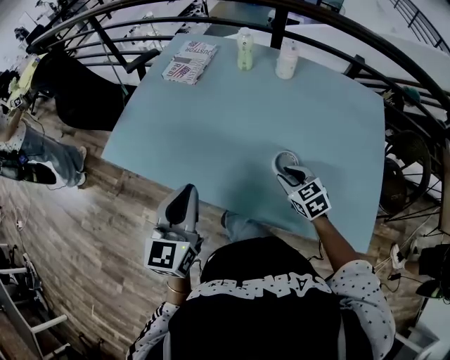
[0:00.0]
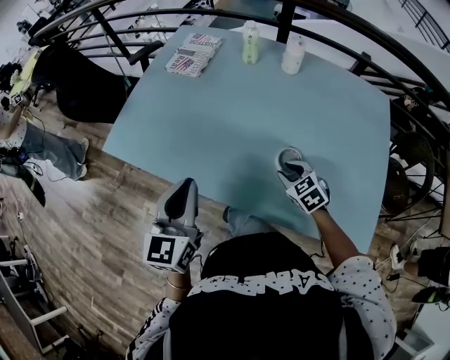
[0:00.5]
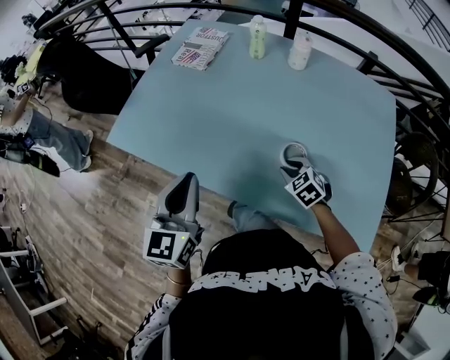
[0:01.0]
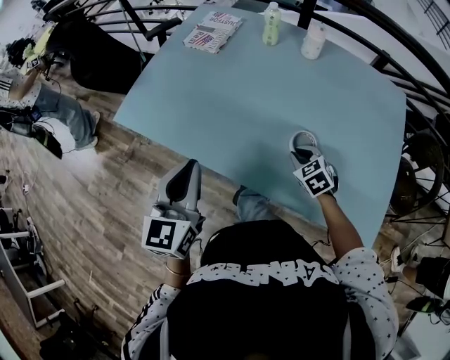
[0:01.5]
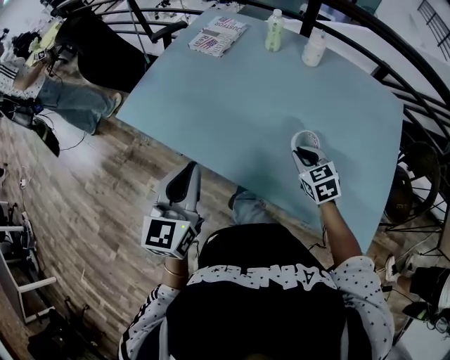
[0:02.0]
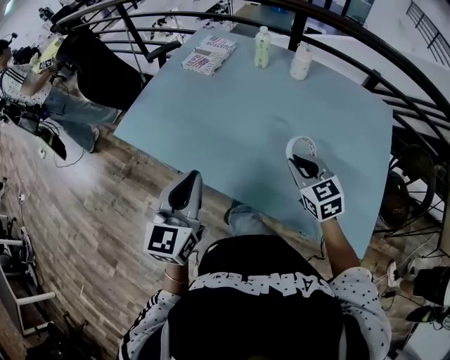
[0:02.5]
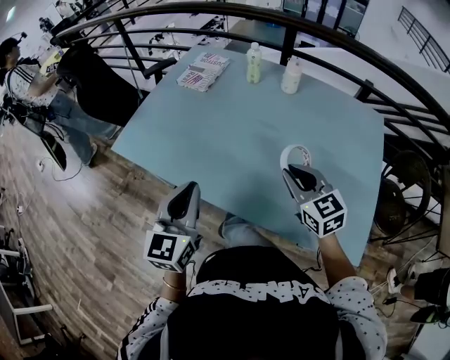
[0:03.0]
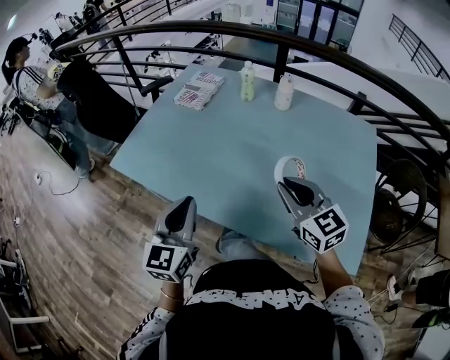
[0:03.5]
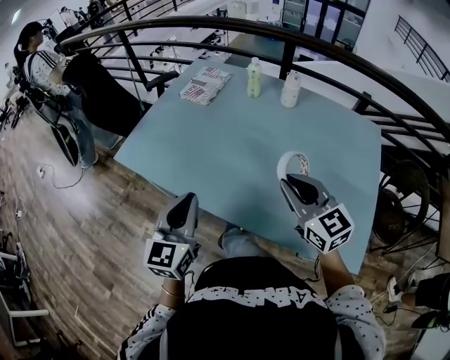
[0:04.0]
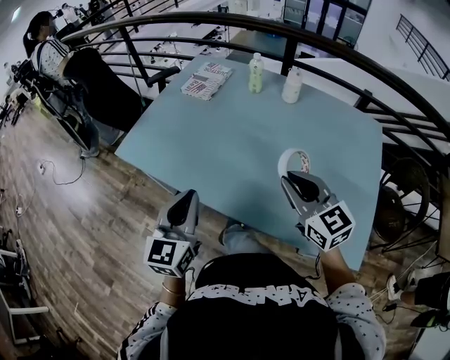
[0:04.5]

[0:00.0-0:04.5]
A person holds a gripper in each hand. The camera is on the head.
0:00.0 to 0:02.0: The grippers stay close to where they were, moving slightly.
0:02.0 to 0:04.5: The right gripper goes about 20 cm upward, and changes its angle by some 30 degrees.

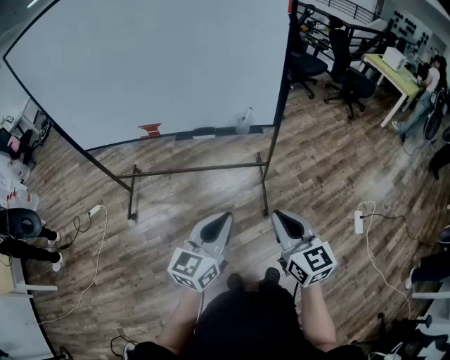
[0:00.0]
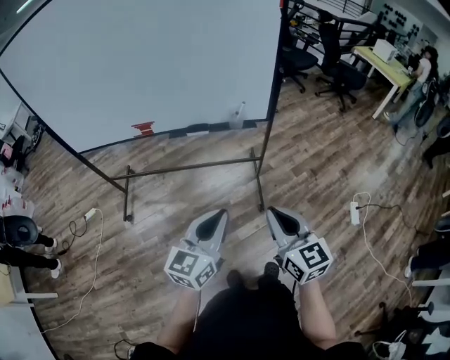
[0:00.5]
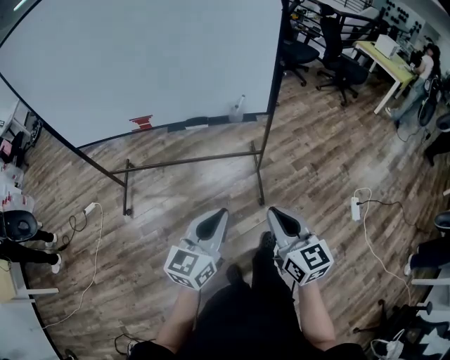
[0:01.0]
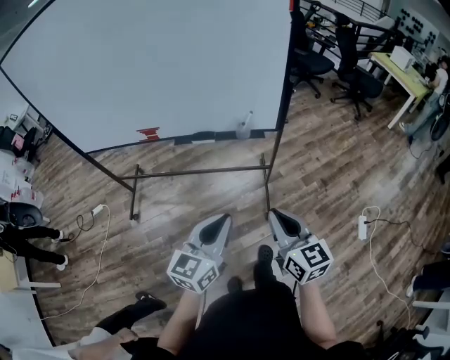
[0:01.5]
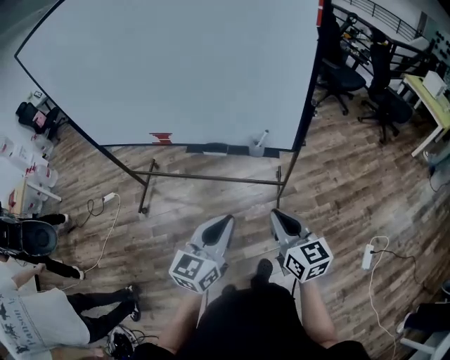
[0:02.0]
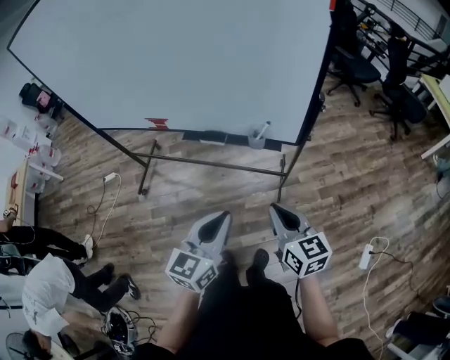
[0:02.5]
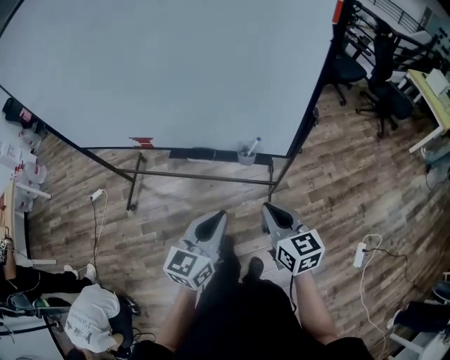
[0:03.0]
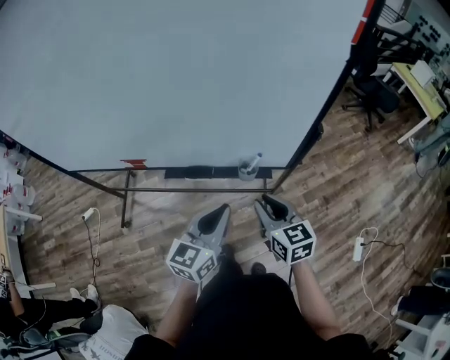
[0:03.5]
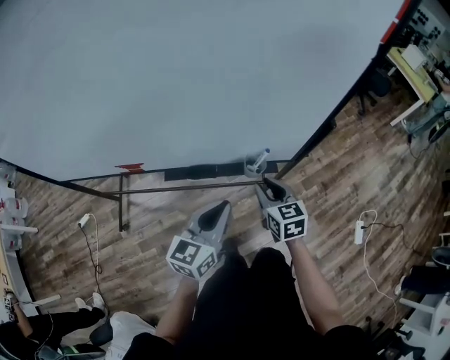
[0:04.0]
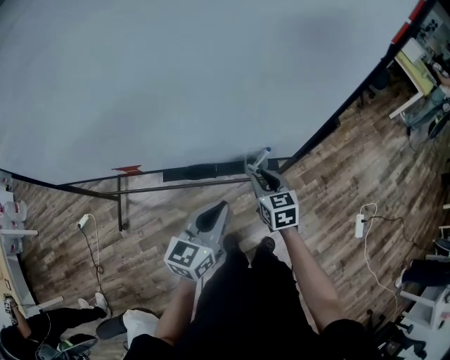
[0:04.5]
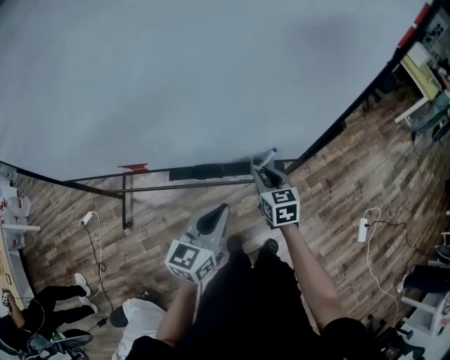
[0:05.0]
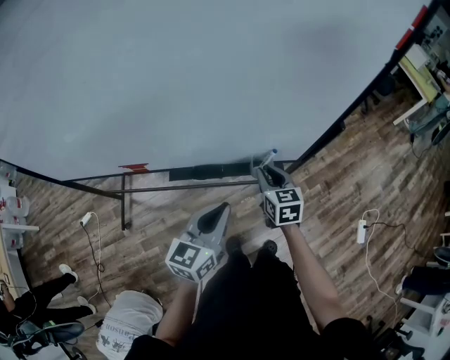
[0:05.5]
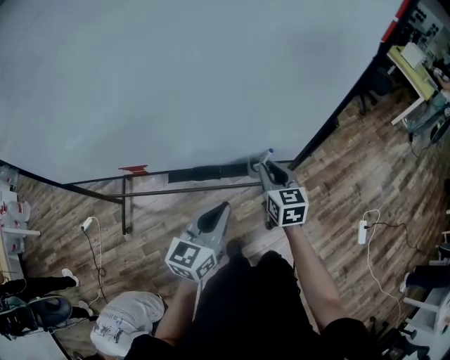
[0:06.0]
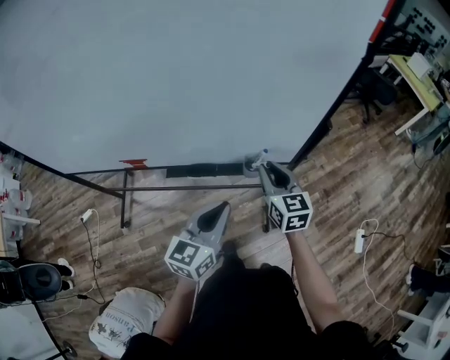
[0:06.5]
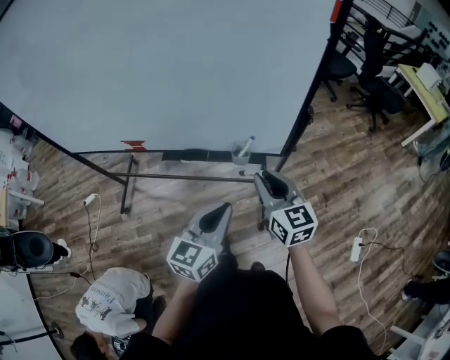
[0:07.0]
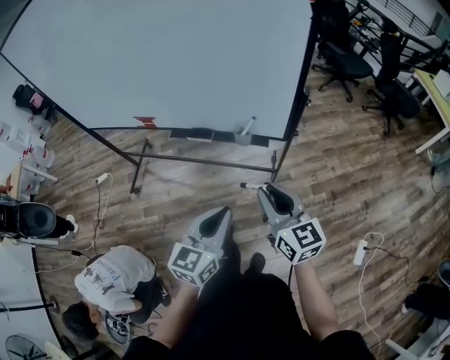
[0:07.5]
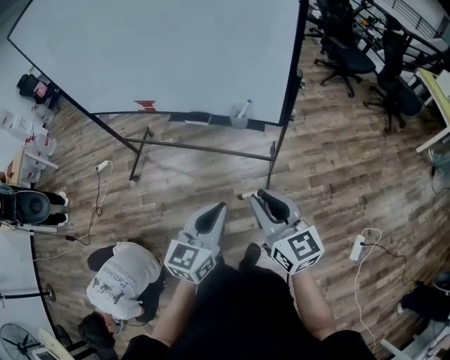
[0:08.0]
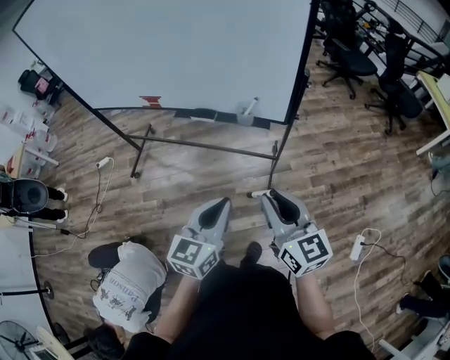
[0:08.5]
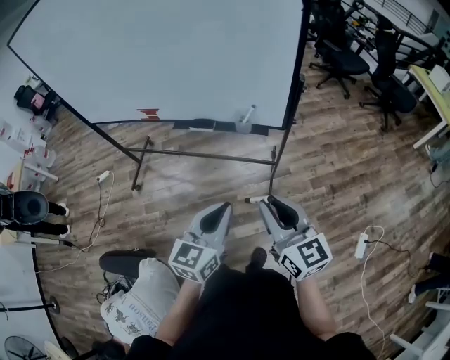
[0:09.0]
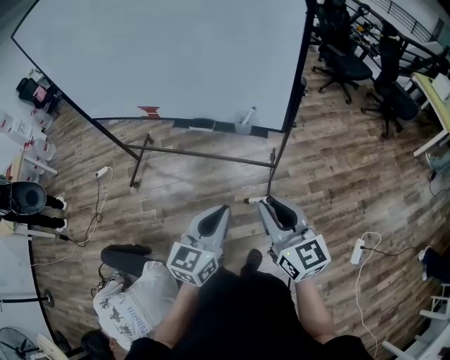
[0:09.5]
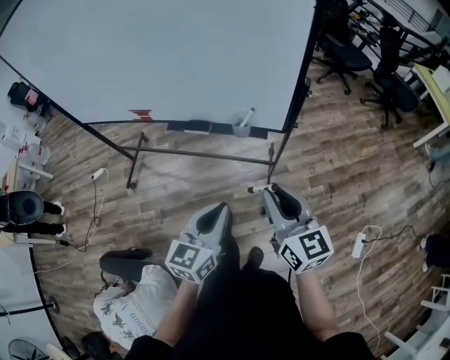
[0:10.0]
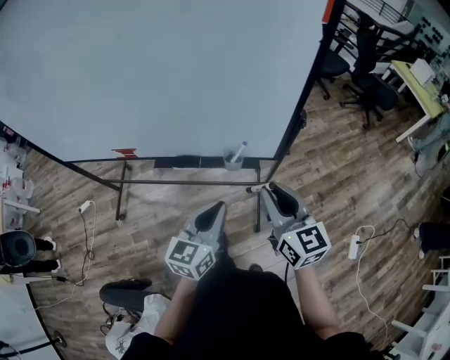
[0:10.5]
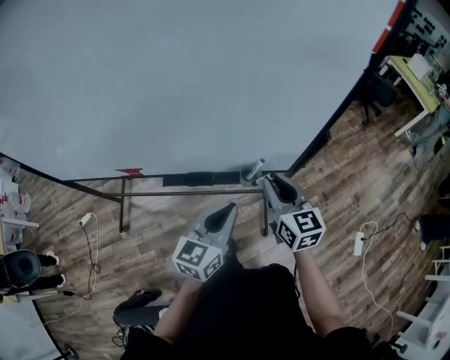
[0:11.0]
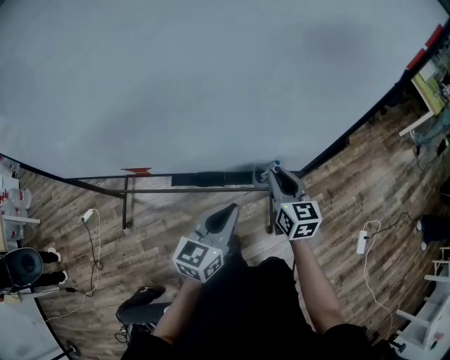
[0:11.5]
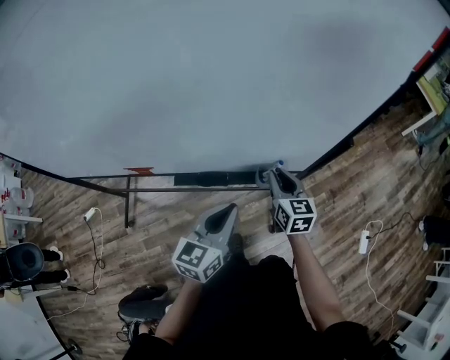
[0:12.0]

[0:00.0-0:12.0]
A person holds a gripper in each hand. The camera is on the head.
0:00.0 to 0:02.0: Both grippers travel together forward, roughly 15 cm.
0:02.0 to 0:04.0: The right gripper moves forward and downward, approximately 30 cm, turns by approximately 20 degrees, and opens; the left gripper shifts about 25 cm forward.
0:04.0 to 0:06.0: The right gripper ends up about 5 cm from where it was.
0:06.0 to 0:08.0: The right gripper moves about 35 cm, and swivels some 30 degrees. Meanwhile the left gripper changes place by approximately 30 cm.
0:08.0 to 0:10.0: Both grippers travel together forward, roughly 5 cm.
0:10.0 to 0:12.0: The left gripper moves forward and to the left, about 25 cm. The right gripper travels forward, downward and to the left by about 35 cm, and turns by approximately 30 degrees.

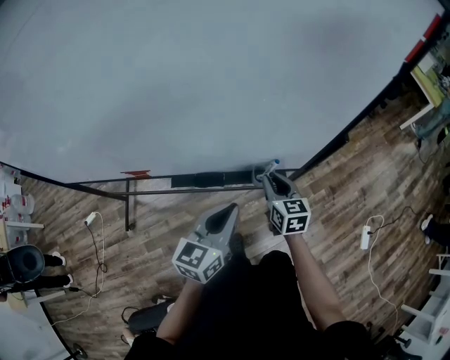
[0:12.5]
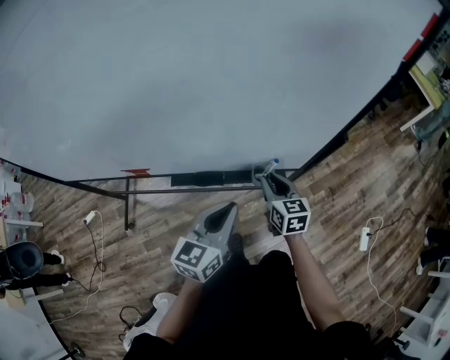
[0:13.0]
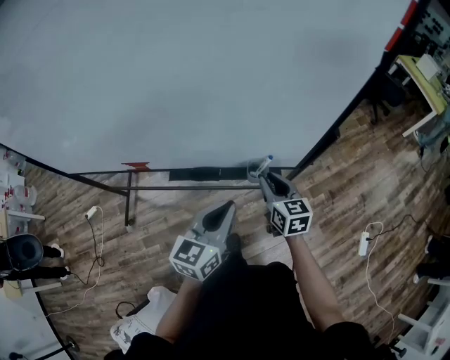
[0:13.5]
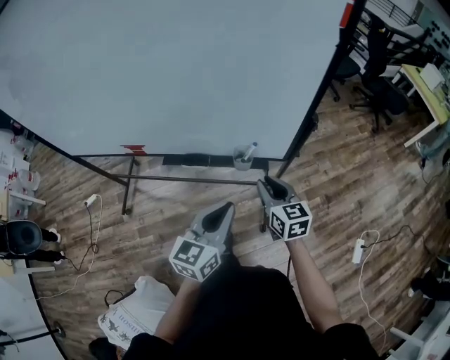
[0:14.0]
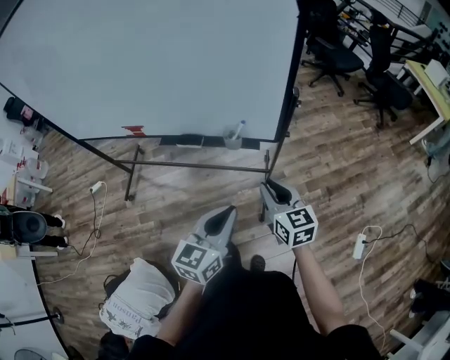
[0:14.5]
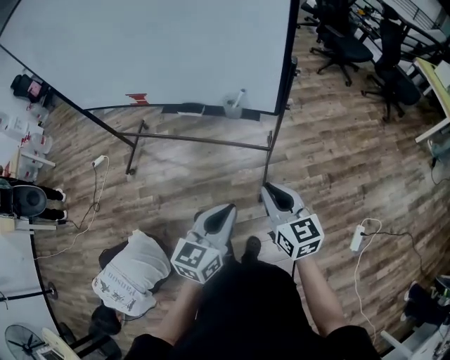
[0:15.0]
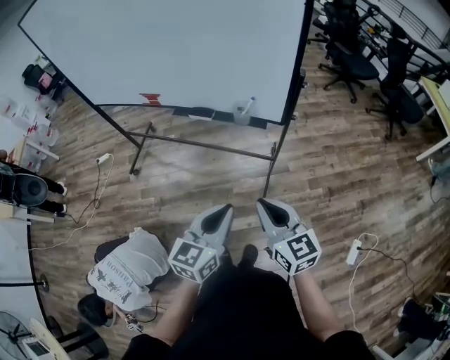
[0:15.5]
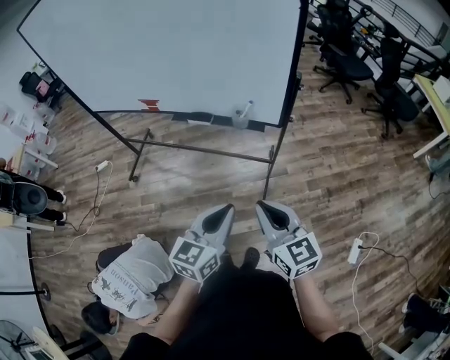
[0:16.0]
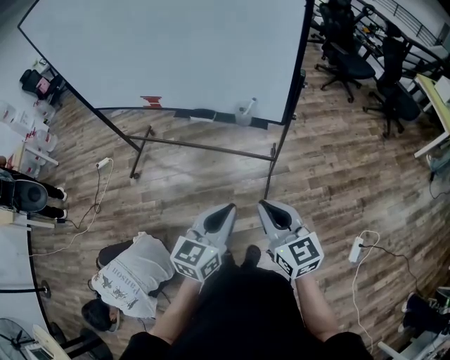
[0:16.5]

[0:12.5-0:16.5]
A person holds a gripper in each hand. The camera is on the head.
0:12.5 to 0:14.5: Both grippers move backward and to the right, some 25 cm.
0:14.5 to 0:16.5: The left gripper shifts approximately 10 cm backward. Meanwhile the right gripper heads backward, covering about 20 cm.

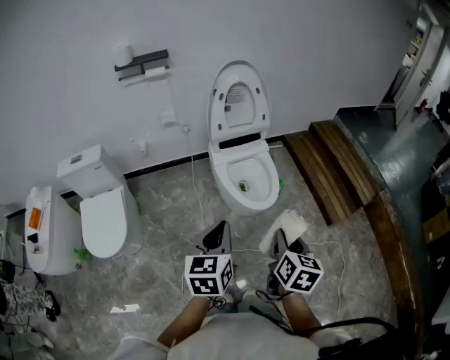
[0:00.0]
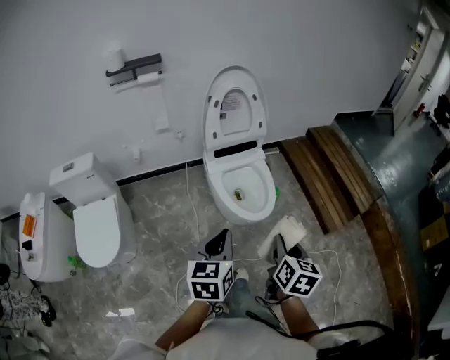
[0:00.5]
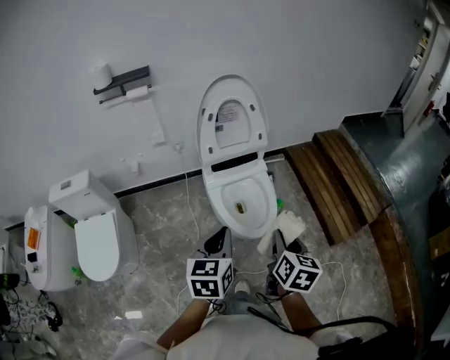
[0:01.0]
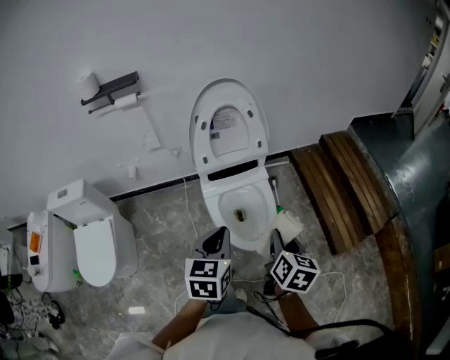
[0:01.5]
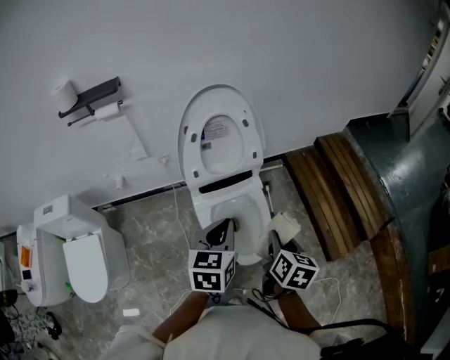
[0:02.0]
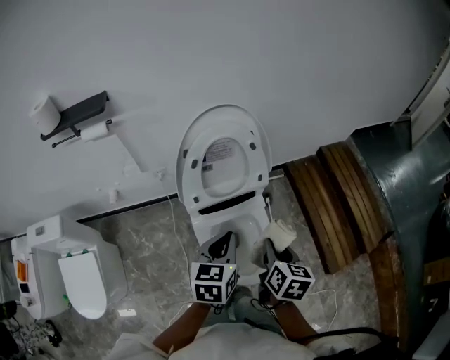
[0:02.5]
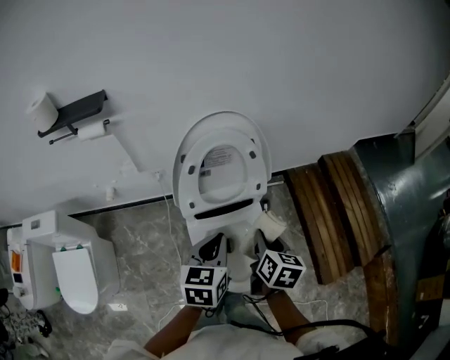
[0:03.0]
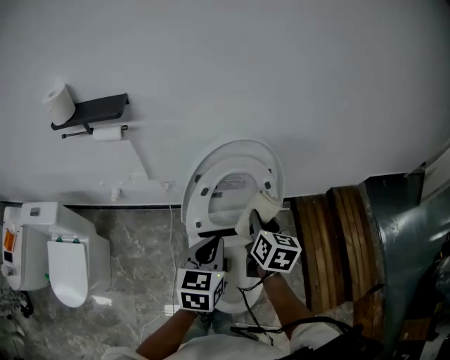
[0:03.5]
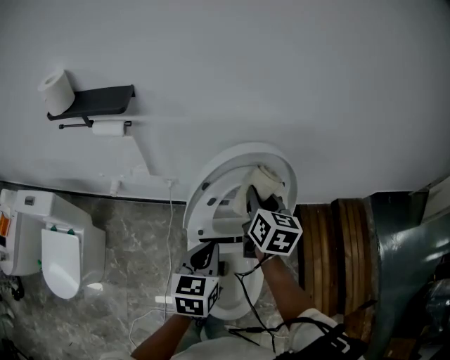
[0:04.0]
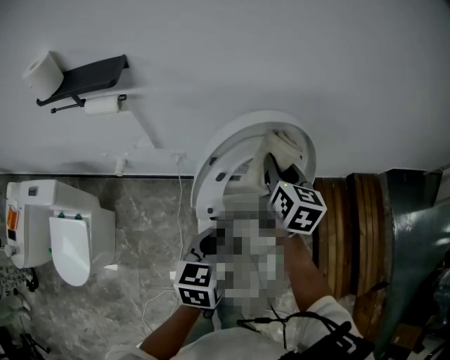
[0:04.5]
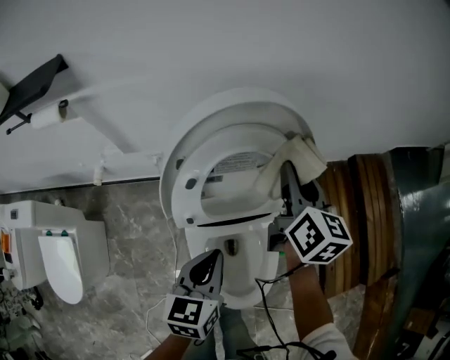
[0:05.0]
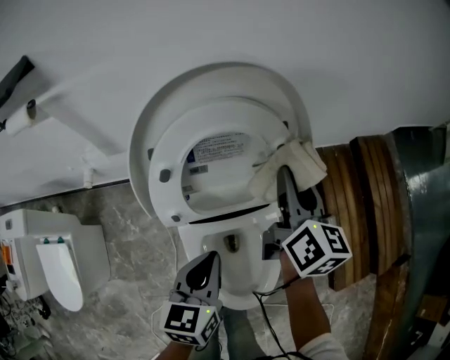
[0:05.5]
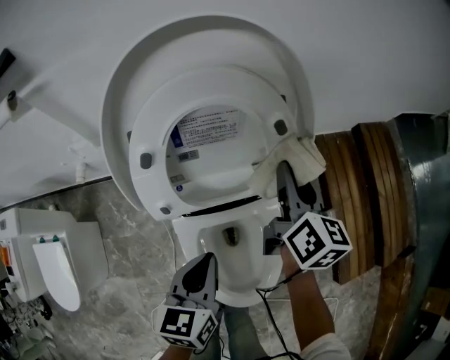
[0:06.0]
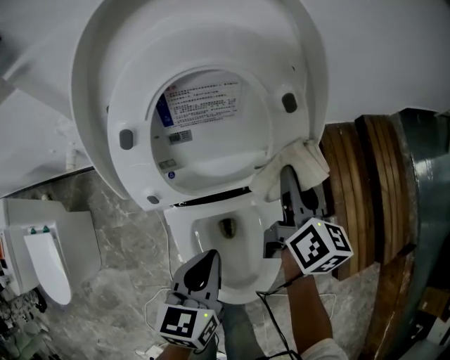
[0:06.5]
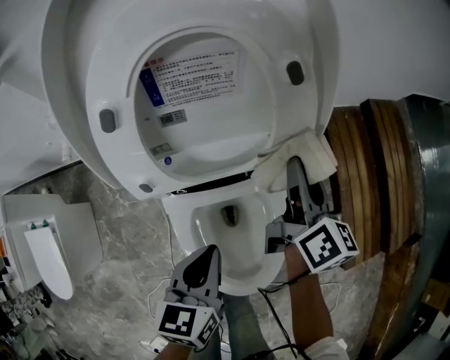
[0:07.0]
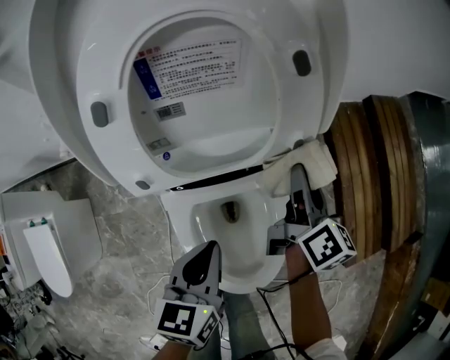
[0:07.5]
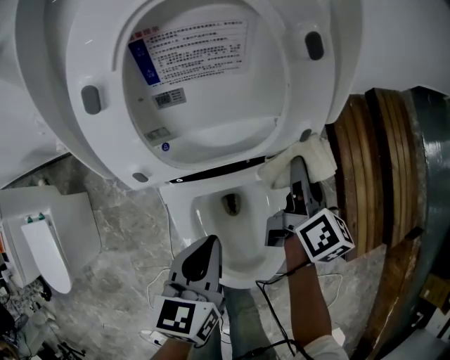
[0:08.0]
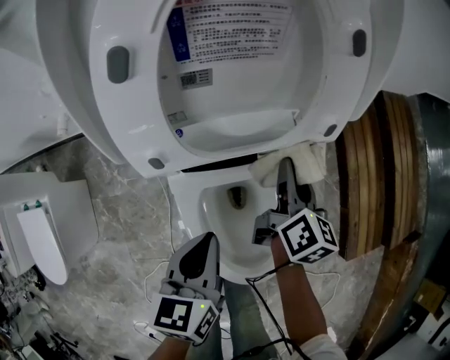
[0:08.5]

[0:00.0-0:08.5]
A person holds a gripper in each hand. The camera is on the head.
0:00.0 to 0:02.0: The two grippers go approximately 35 cm forward.
0:02.0 to 0:04.0: The right gripper shifts roughly 50 cm forward and to the left, and swivels approximately 30 degrees; the left gripper heads forward and to the left, covering approximately 25 cm.
0:04.0 to 0:06.5: The left gripper moves downward, approximately 20 cm. Meanwhile the right gripper is displaced downward and to the right by roughly 25 cm, and rotates about 20 degrees.
0:06.5 to 0:08.5: The right gripper moves downward and backward, about 15 cm, while the left gripper travels downward by approximately 5 cm.
